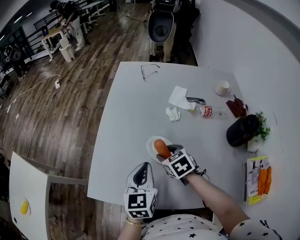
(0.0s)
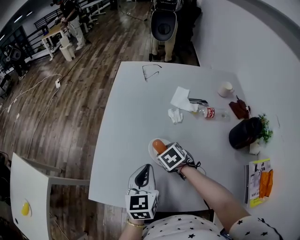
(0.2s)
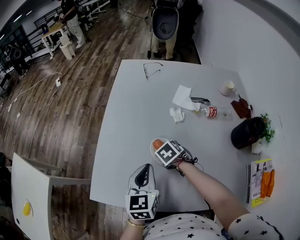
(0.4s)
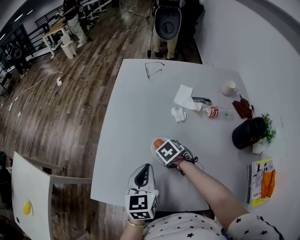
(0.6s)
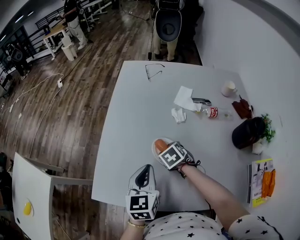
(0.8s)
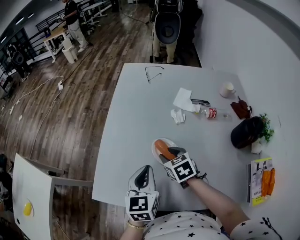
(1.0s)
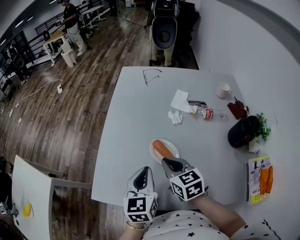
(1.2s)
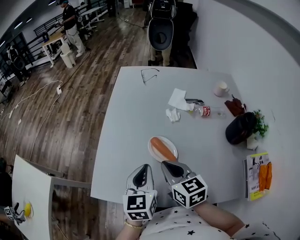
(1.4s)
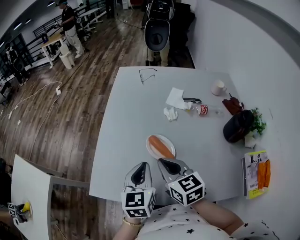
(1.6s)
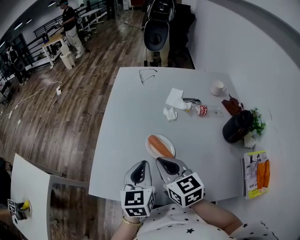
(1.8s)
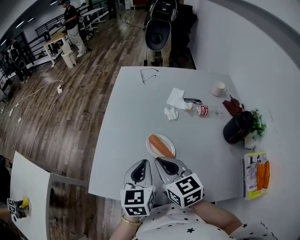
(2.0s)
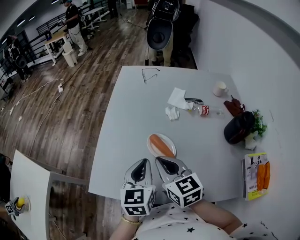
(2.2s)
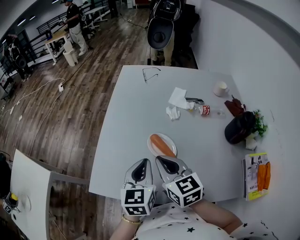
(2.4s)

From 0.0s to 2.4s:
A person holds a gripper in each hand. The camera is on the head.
From 0.0s to 1.2s: The right gripper shifts approximately 10 cm upward, changes its angle by some 20 degrees, and closes its fingers.
From 1.2s to 2.4s: The right gripper goes some 5 cm upward.

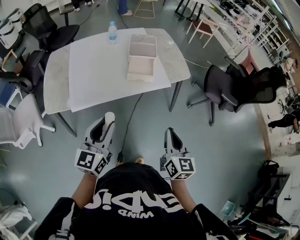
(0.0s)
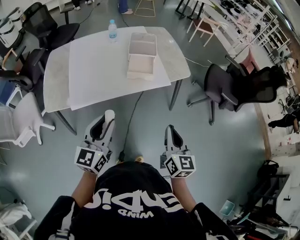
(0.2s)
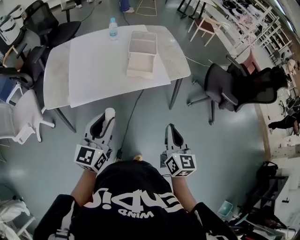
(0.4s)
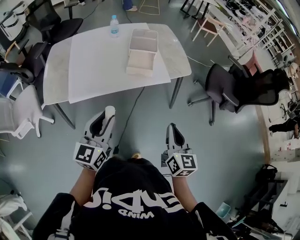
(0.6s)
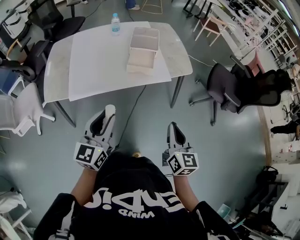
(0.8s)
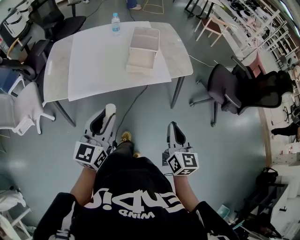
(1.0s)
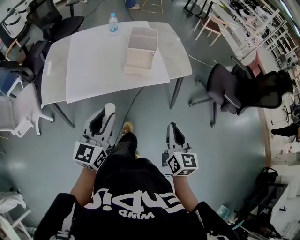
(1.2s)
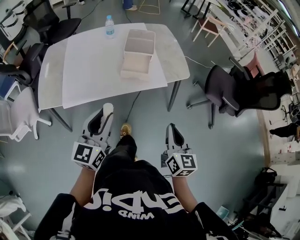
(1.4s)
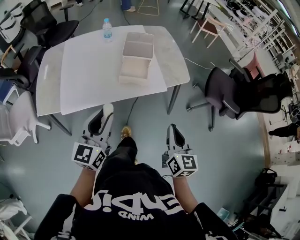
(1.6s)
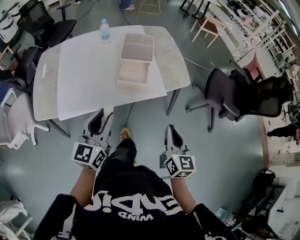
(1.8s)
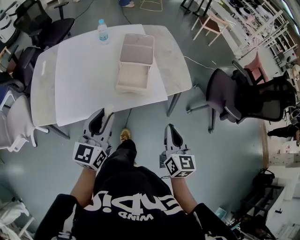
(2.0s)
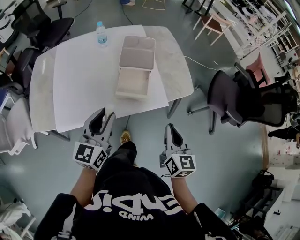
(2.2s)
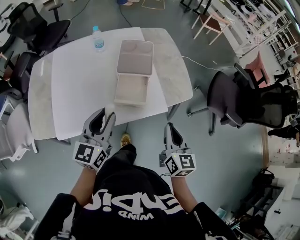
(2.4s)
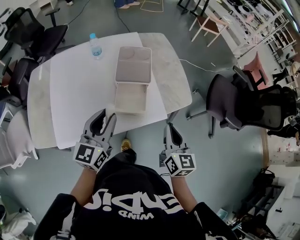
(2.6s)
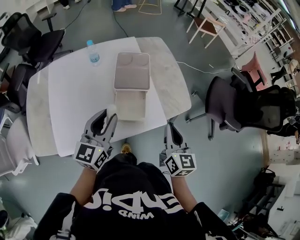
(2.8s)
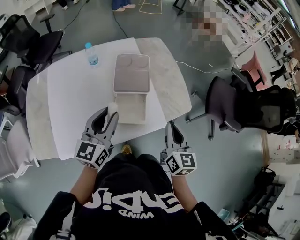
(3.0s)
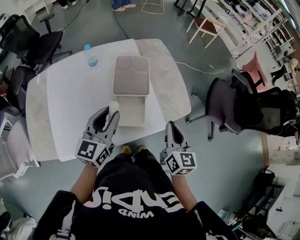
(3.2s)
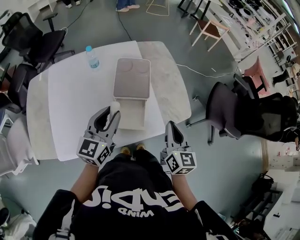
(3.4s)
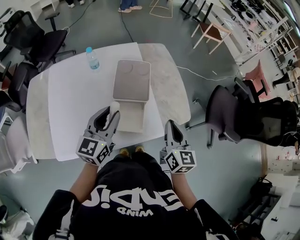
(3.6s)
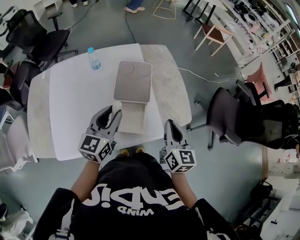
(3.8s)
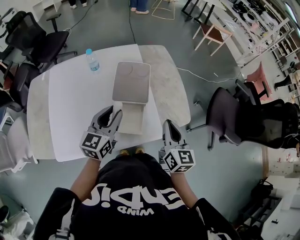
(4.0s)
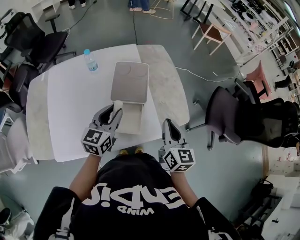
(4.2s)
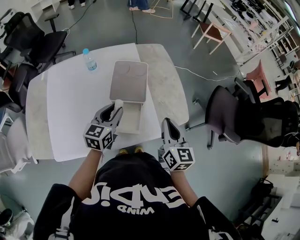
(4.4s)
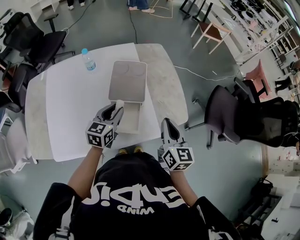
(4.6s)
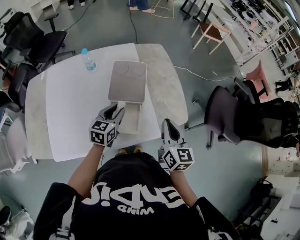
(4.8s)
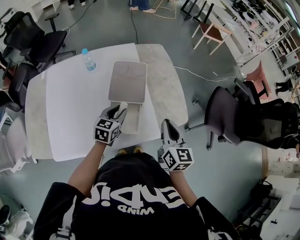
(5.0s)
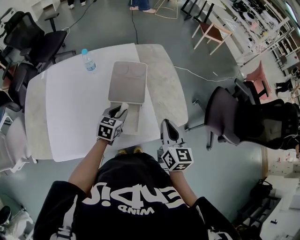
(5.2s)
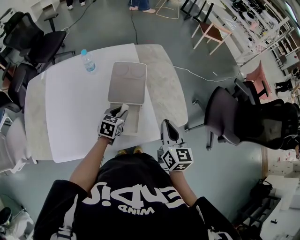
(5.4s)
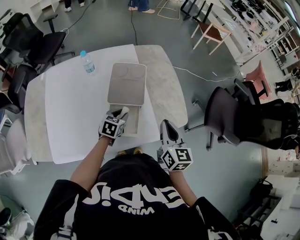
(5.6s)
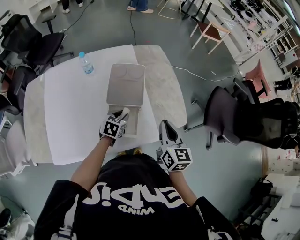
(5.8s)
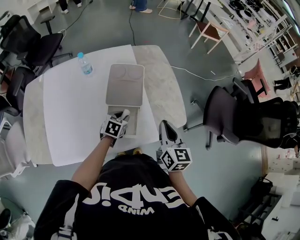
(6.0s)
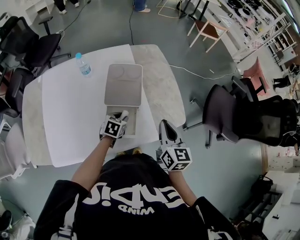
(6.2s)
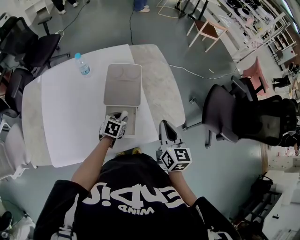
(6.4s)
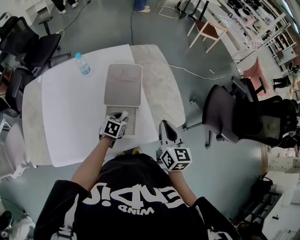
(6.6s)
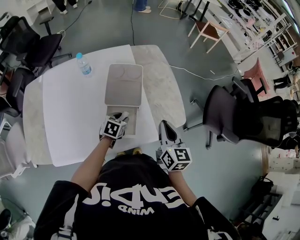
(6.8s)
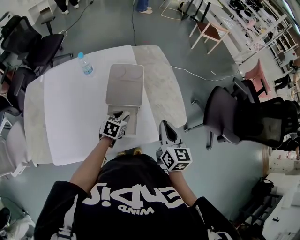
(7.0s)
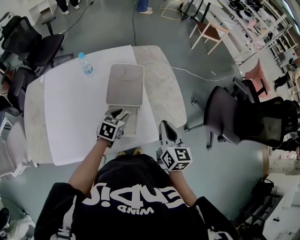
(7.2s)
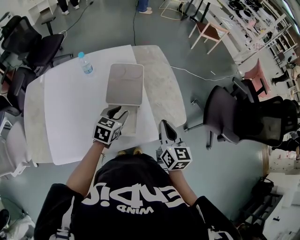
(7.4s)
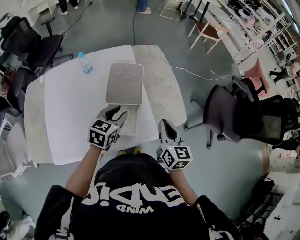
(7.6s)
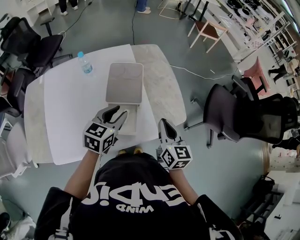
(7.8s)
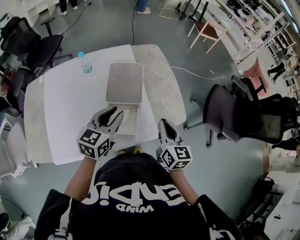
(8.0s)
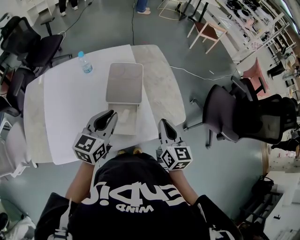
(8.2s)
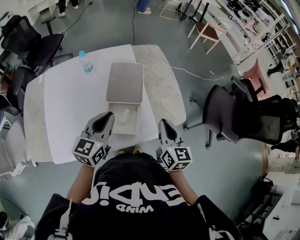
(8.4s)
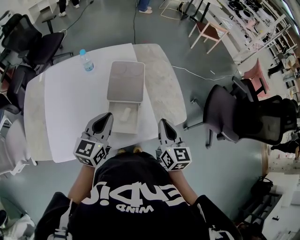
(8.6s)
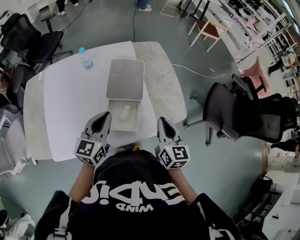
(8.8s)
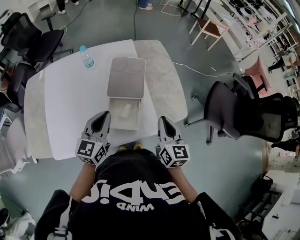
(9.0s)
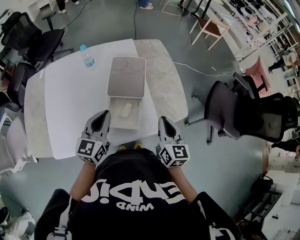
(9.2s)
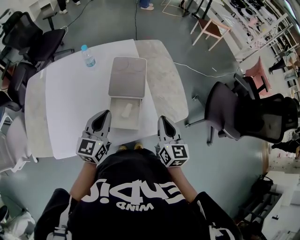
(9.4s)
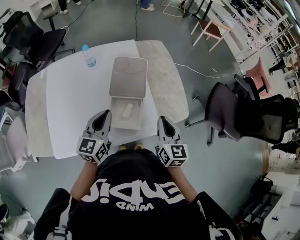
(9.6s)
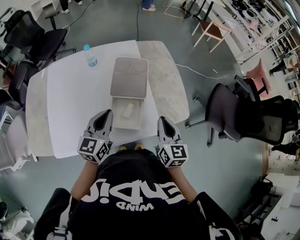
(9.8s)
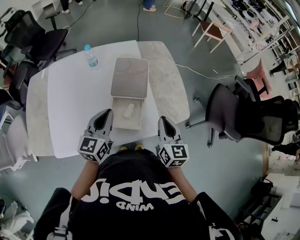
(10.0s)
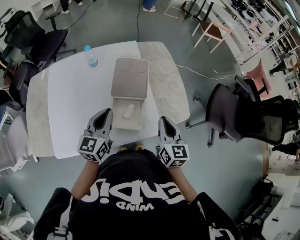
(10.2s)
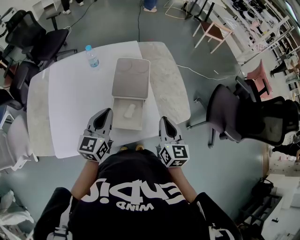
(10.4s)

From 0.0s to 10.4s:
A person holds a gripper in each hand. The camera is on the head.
From 0.0s to 1.4s: The left gripper travels to the right by about 5 cm; the right gripper travels to the right and forward by some 10 cm.
From 1.4s to 3.0s: Both grippers move forward, approximately 30 cm.
From 3.0s to 4.4s: The left gripper moves forward and downward, approximately 10 cm; the right gripper is displaced forward by roughly 5 cm.
From 4.4s to 6.0s: The left gripper is displaced downward by approximately 15 cm, and tilts its fingers about 30 degrees downward.
From 6.0s to 7.4s: The left gripper is displaced upward by roughly 10 cm.
From 7.4s to 9.0s: The left gripper is displaced upward, backward and to the left by about 15 cm, turns by some 30 degrees, and closes.
From 9.0s to 10.4s: Both grippers stay put.

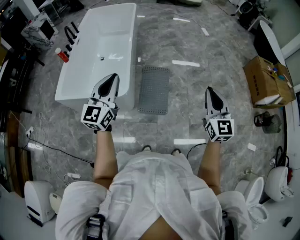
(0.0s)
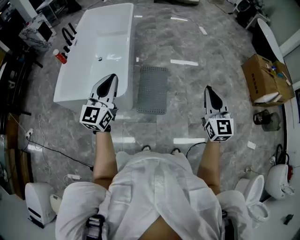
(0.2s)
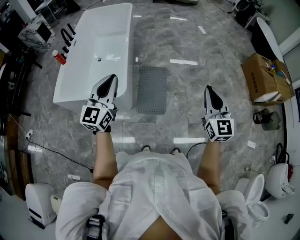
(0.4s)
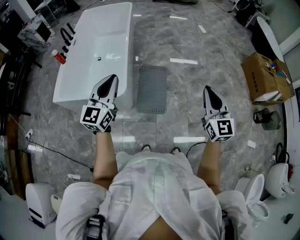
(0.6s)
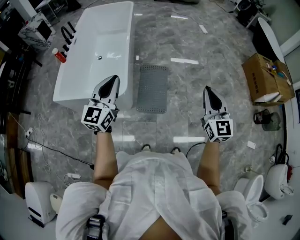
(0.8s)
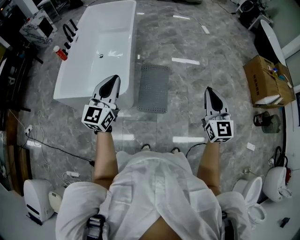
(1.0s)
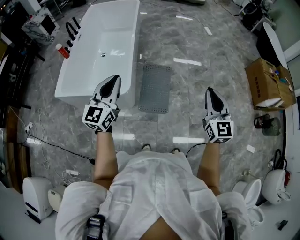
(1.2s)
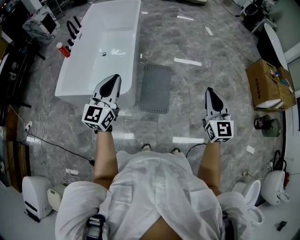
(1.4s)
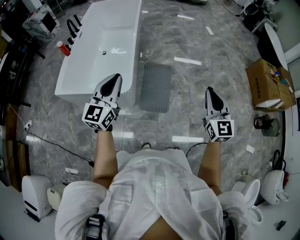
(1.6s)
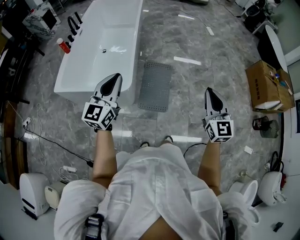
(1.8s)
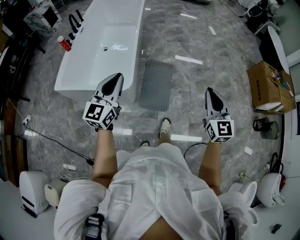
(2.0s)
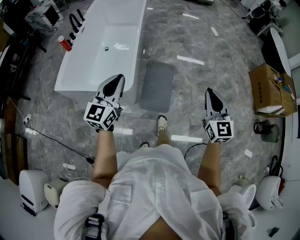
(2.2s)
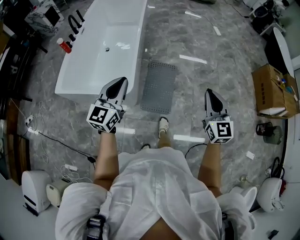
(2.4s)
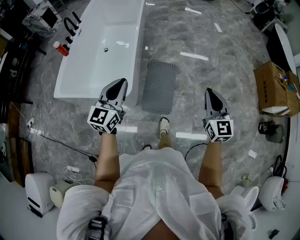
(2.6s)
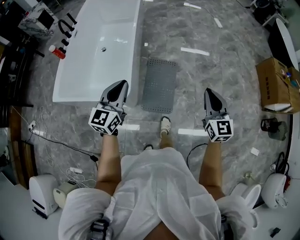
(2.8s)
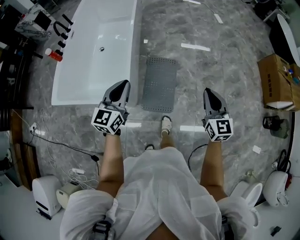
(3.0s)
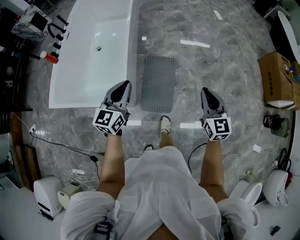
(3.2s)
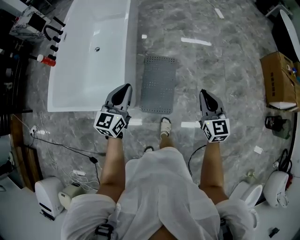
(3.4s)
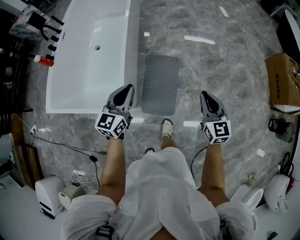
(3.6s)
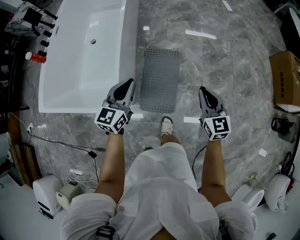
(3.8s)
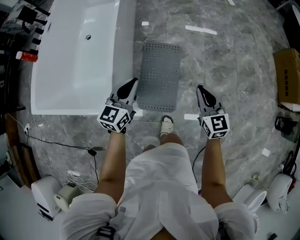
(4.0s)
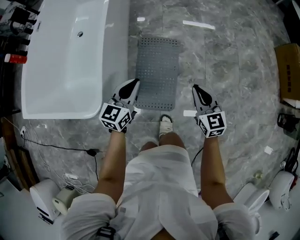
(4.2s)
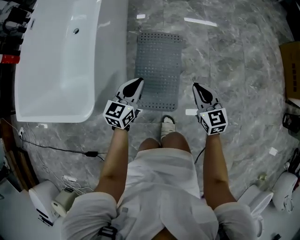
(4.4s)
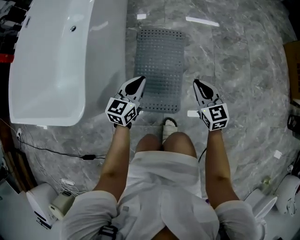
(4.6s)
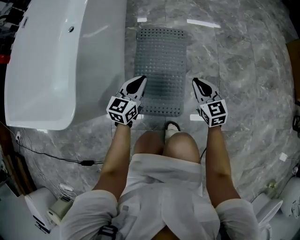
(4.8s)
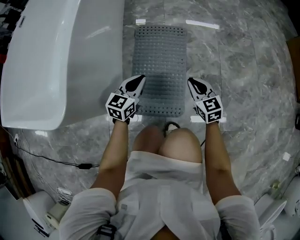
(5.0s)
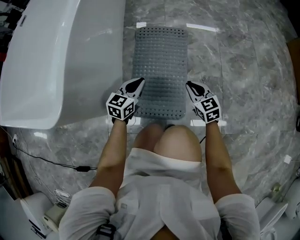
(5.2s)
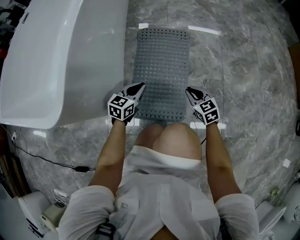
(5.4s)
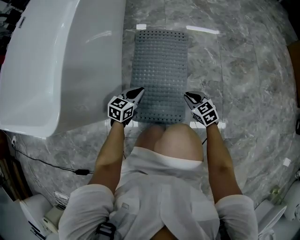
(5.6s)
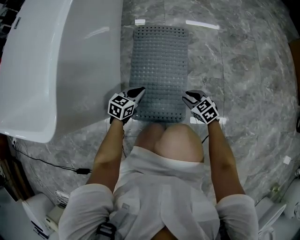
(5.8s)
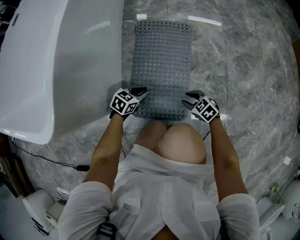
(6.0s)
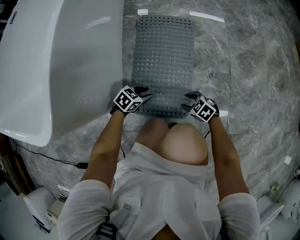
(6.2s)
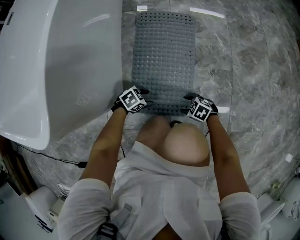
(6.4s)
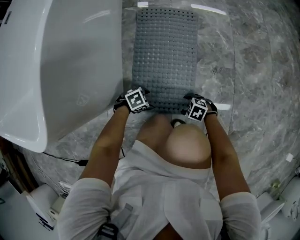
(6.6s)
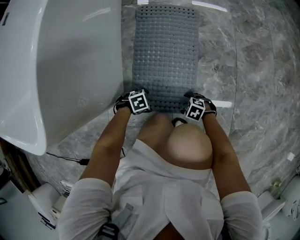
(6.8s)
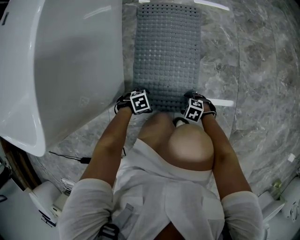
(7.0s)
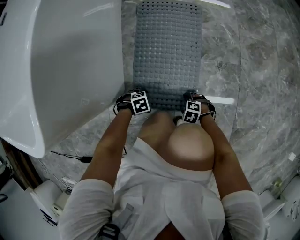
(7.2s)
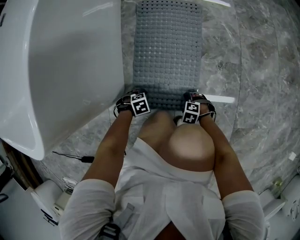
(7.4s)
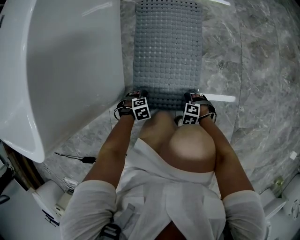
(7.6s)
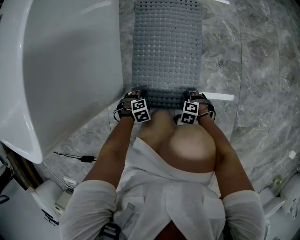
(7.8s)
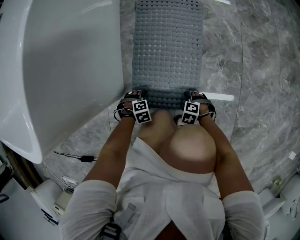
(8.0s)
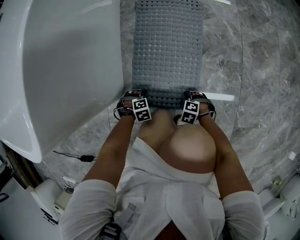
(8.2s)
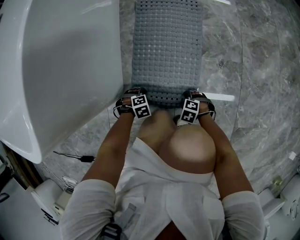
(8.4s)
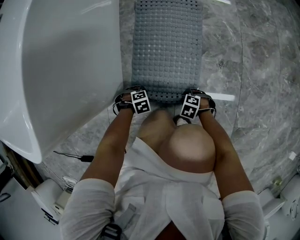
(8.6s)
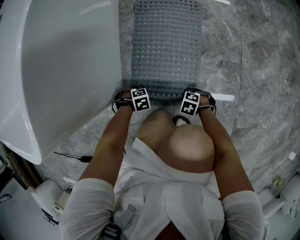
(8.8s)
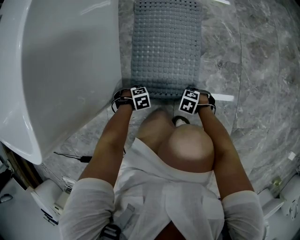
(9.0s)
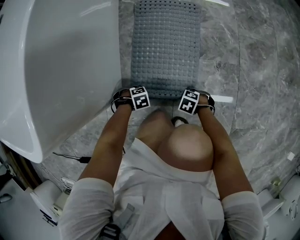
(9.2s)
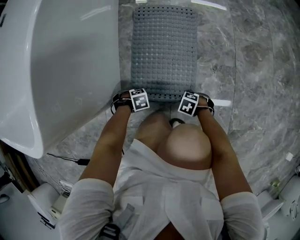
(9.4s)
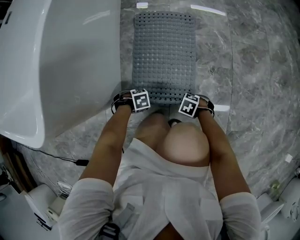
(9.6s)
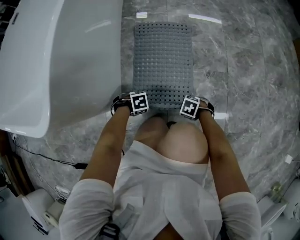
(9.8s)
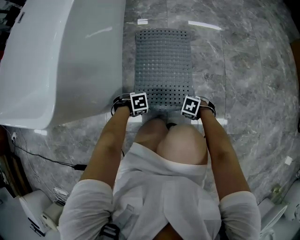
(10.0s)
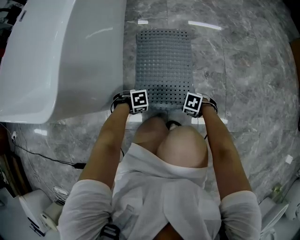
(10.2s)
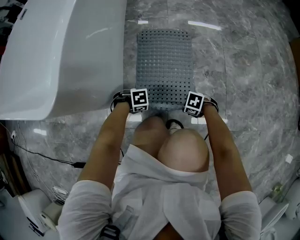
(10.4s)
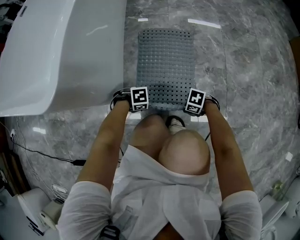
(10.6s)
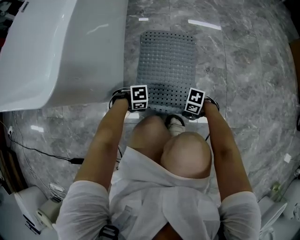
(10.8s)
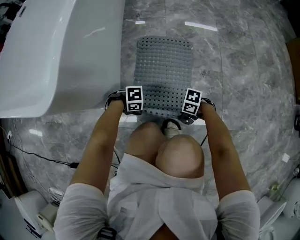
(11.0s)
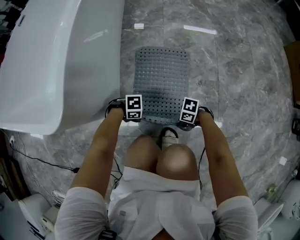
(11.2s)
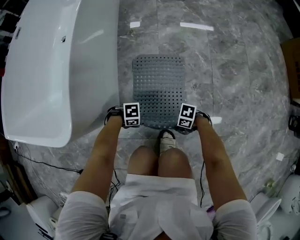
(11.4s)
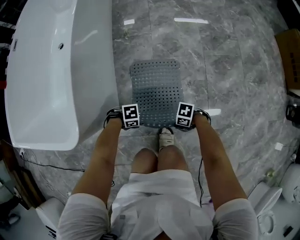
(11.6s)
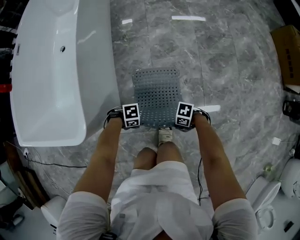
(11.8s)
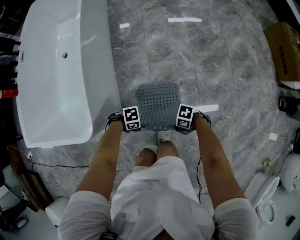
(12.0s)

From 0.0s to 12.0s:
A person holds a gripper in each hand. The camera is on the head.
From 0.0s to 1.6s: The grippers move only a little.
From 1.6s to 3.0s: The two grippers go approximately 20 cm forward and downward.
From 3.0s to 4.4s: The two grippers go approximately 50 cm downward.
From 4.4s to 6.0s: The grippers both shift downward by roughly 40 cm. The left gripper rotates roughly 40 degrees. Meanwhile the right gripper rotates some 40 degrees, and opens.
From 6.0s to 7.6s: Both grippers move downward, about 15 cm. The right gripper rotates approximately 40 degrees, and opens up. Meanwhile the left gripper tips its fingers downward by some 30 degrees, and opens.
From 7.6s to 9.0s: The left gripper closes. The right gripper closes its fingers.
From 9.0s to 10.4s: The grippers both shift upward by some 15 cm.
From 10.4s to 12.0s: The two grippers go some 30 cm upward. The right gripper rotates about 30 degrees. Meanwhile the left gripper rotates approximately 20 degrees.
